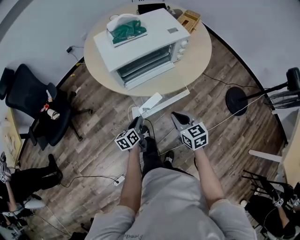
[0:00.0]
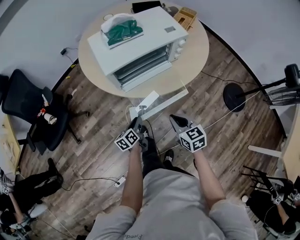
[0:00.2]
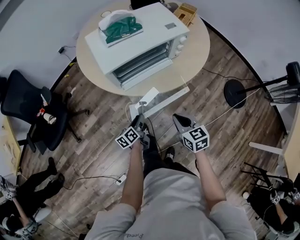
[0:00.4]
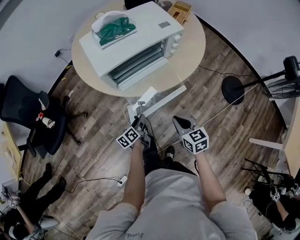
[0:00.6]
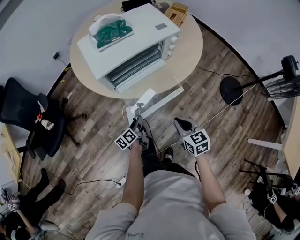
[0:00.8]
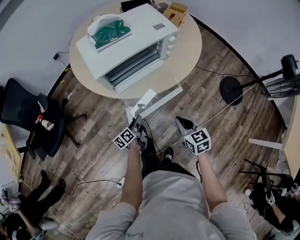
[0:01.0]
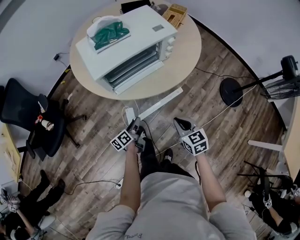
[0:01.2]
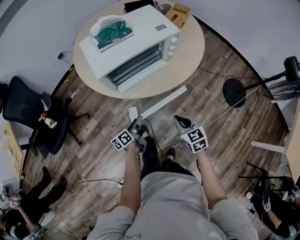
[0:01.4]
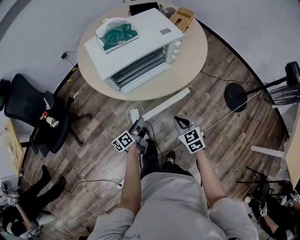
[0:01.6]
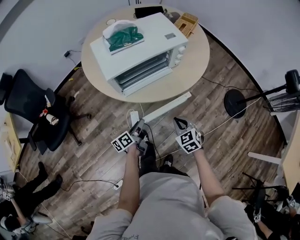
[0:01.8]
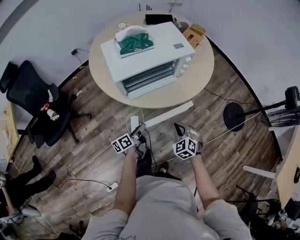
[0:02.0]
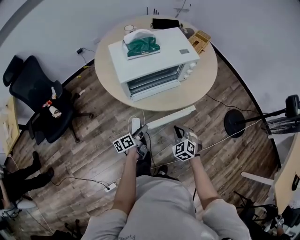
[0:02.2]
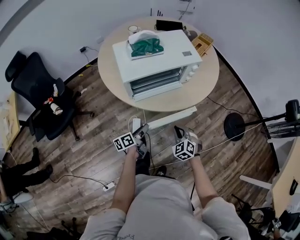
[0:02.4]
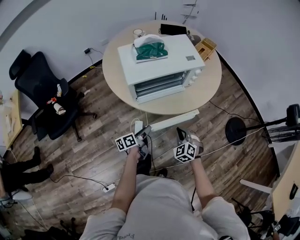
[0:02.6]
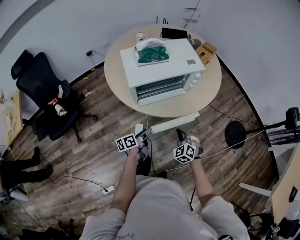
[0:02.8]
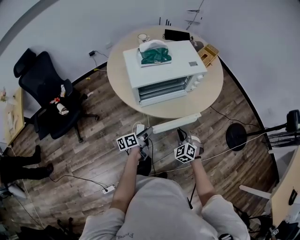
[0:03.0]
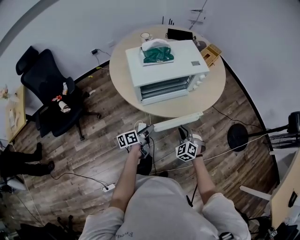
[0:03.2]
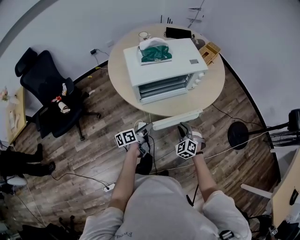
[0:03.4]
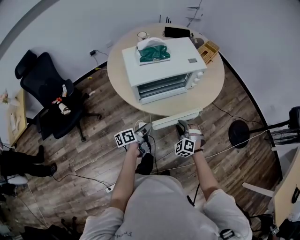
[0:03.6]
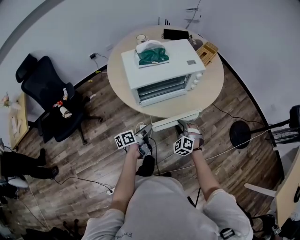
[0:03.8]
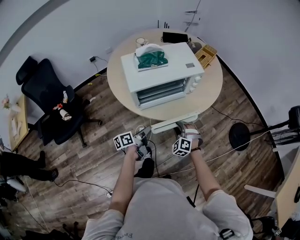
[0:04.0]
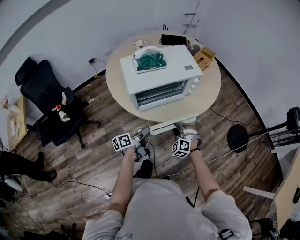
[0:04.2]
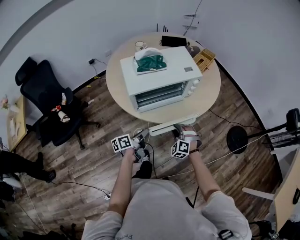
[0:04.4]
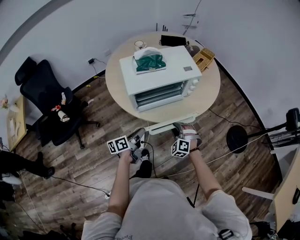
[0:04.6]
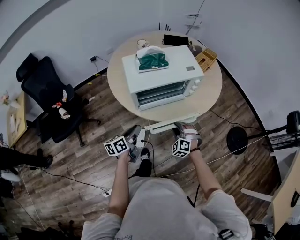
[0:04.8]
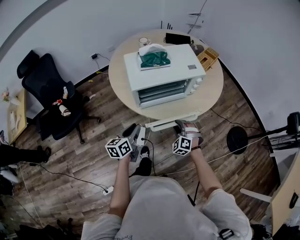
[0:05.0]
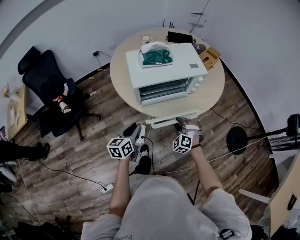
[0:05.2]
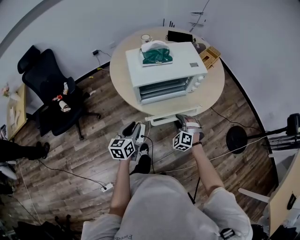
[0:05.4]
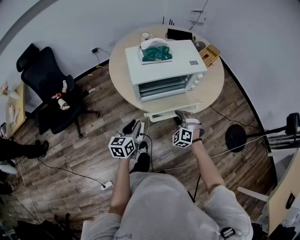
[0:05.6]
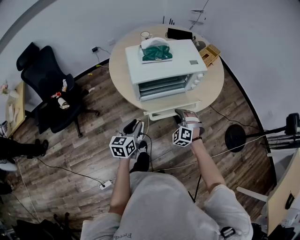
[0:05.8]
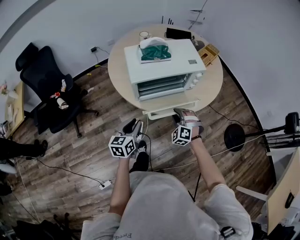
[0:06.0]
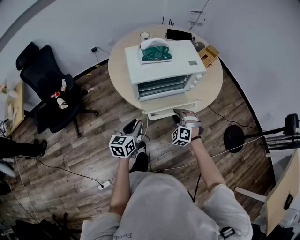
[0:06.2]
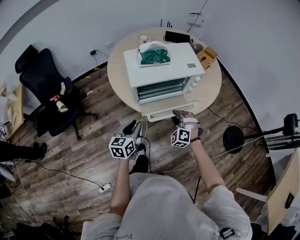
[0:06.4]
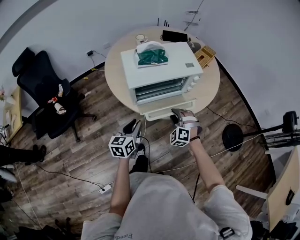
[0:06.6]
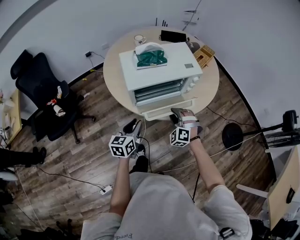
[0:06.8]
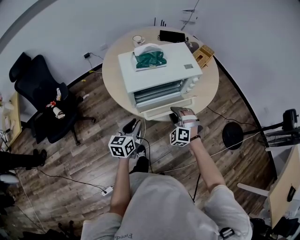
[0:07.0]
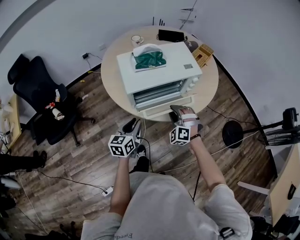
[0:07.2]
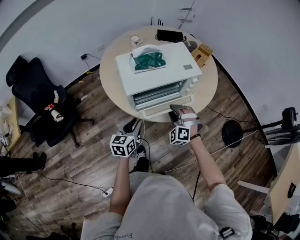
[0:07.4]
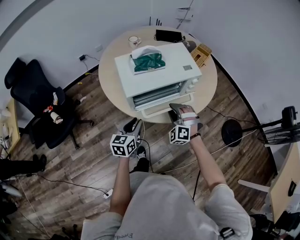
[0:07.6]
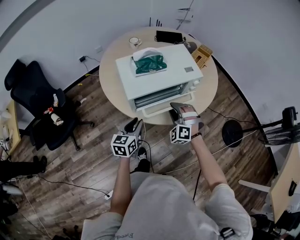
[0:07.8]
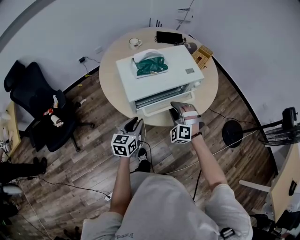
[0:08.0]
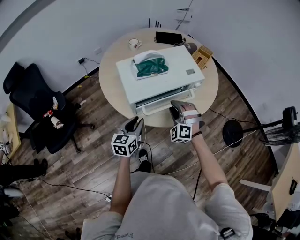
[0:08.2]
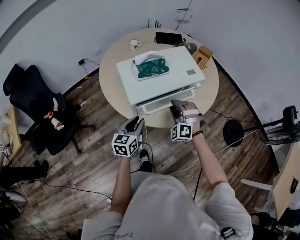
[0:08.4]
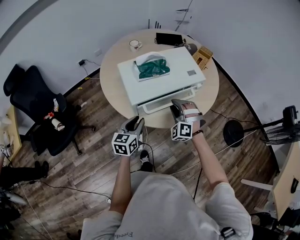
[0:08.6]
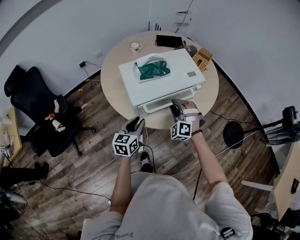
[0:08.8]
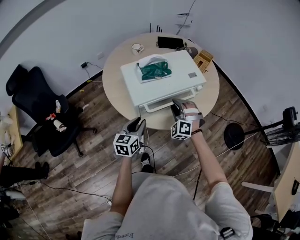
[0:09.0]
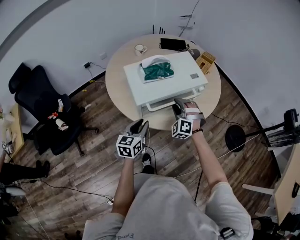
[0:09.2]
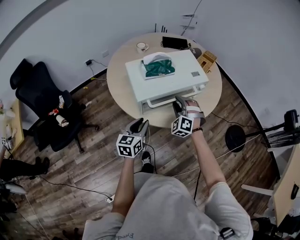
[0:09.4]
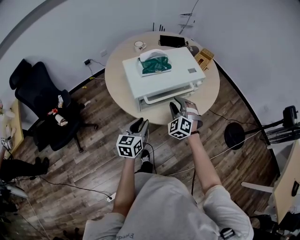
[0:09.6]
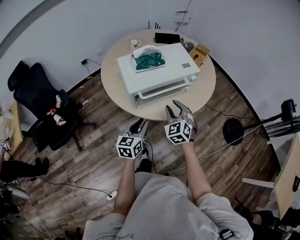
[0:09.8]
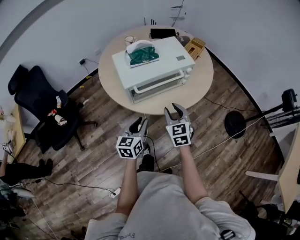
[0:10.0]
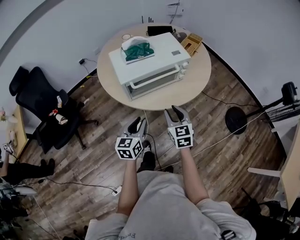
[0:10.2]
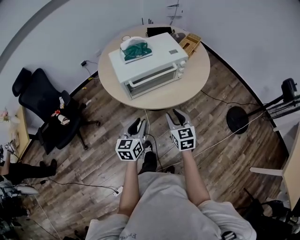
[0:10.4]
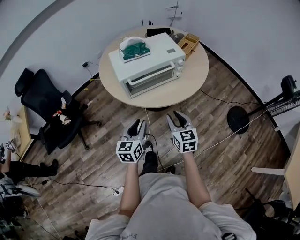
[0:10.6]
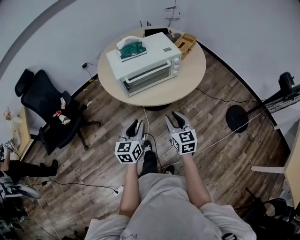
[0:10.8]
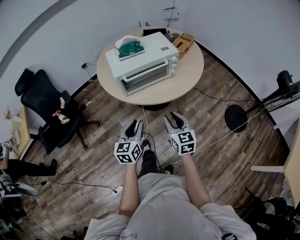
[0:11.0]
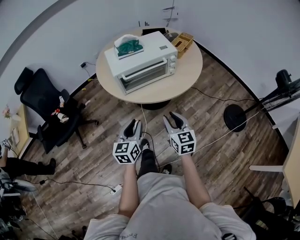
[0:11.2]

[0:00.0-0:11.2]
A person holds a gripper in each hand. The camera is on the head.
0:00.0 to 0:01.6: The right gripper goes some 5 cm downward, while the left gripper swivels about 20 degrees.
0:01.6 to 0:03.2: The left gripper moves upward, approximately 5 cm, while the right gripper ends up roughly 5 cm from where it was, and rotates around the line of its fingers by some 40 degrees, counterclockwise from behind.
0:03.2 to 0:04.8: The left gripper heads upward and to the left, covering some 10 cm.
0:04.8 to 0:06.4: The right gripper moves roughly 5 cm; the left gripper turns by some 30 degrees.
0:06.4 to 0:08.0: The left gripper heads forward, covering roughly 10 cm; the right gripper goes about 10 cm forward and upward.
0:08.0 to 0:09.6: The grippers make only small movements.
0:09.6 to 0:11.2: Both grippers travel together backward and to the right, roughly 25 cm. The right gripper rotates around the line of its fingers by some 60 degrees, clockwise from behind.

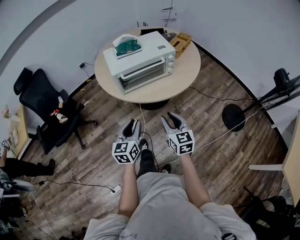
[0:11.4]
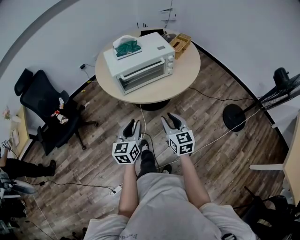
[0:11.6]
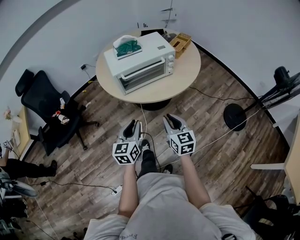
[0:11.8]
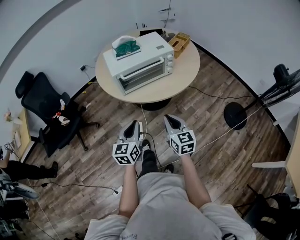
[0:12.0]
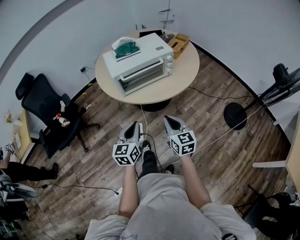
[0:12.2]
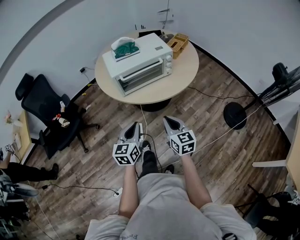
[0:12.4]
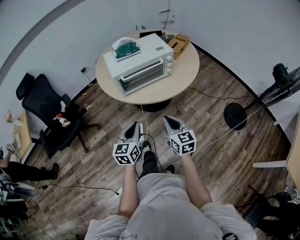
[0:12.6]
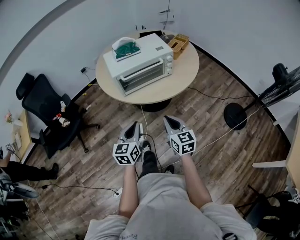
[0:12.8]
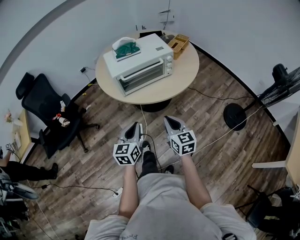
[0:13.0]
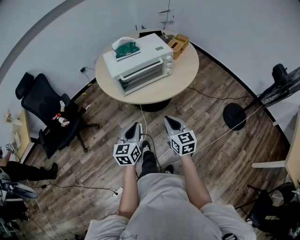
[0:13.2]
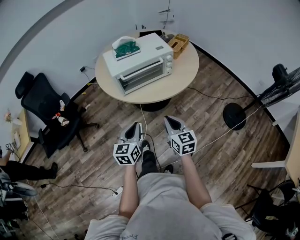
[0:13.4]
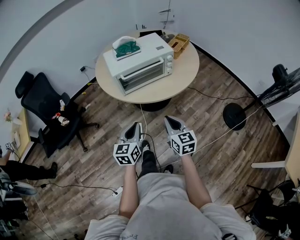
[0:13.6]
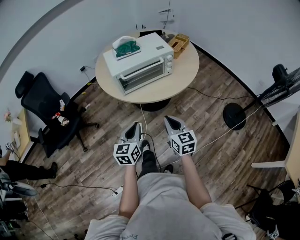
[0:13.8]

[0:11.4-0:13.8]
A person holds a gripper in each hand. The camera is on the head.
0:11.4 to 0:12.6: The left gripper closes its fingers. The right gripper closes its fingers.
0:12.6 to 0:13.8: Both grippers stay put.

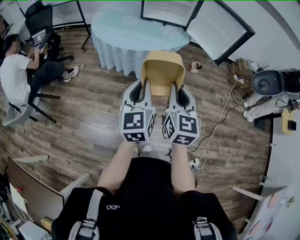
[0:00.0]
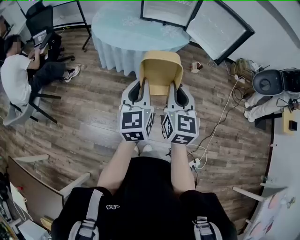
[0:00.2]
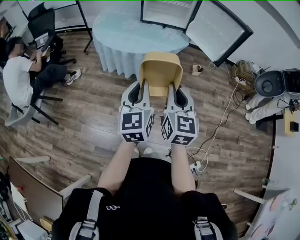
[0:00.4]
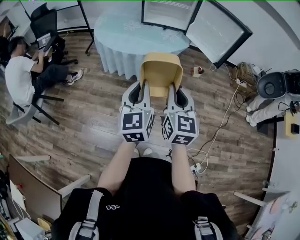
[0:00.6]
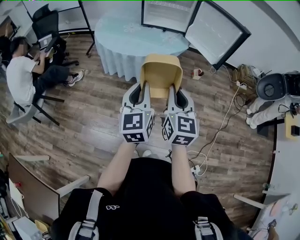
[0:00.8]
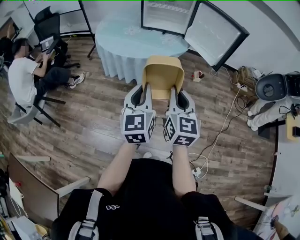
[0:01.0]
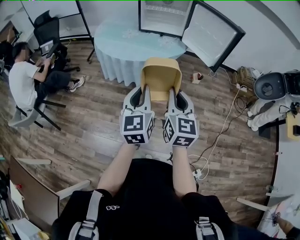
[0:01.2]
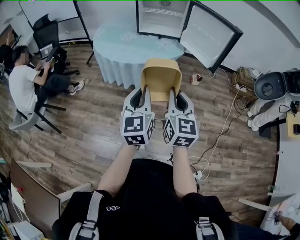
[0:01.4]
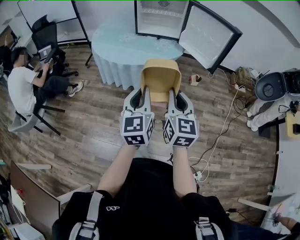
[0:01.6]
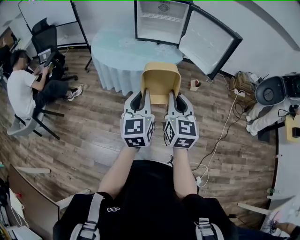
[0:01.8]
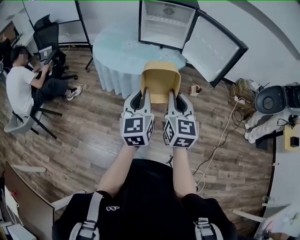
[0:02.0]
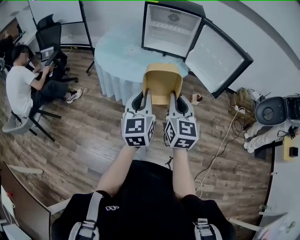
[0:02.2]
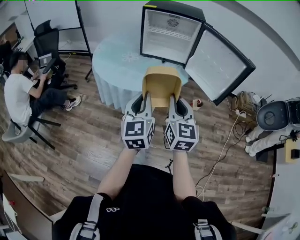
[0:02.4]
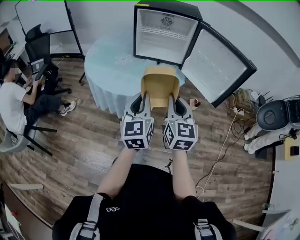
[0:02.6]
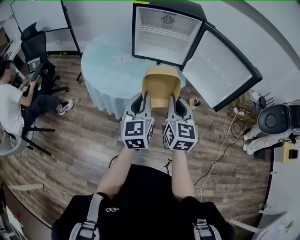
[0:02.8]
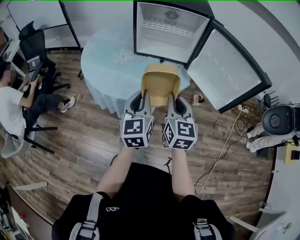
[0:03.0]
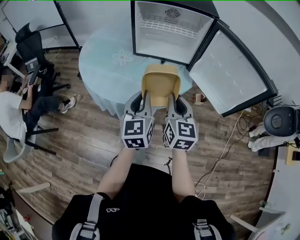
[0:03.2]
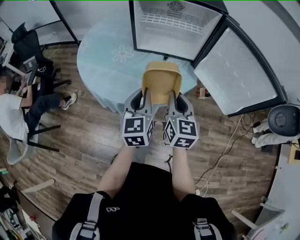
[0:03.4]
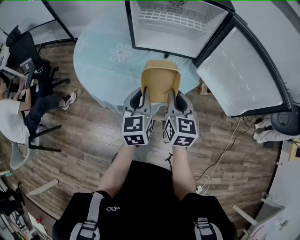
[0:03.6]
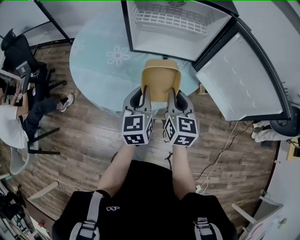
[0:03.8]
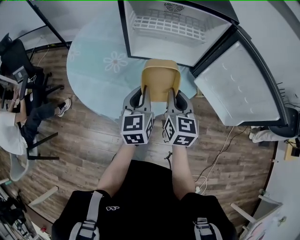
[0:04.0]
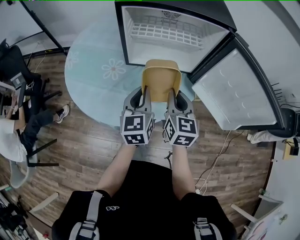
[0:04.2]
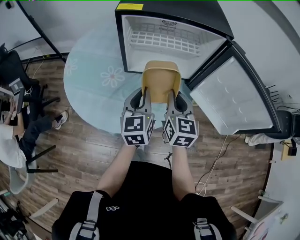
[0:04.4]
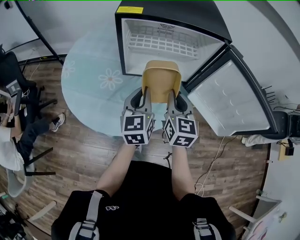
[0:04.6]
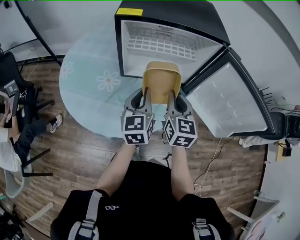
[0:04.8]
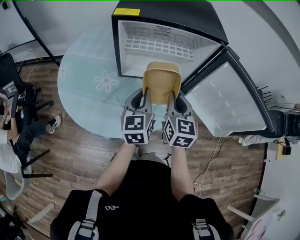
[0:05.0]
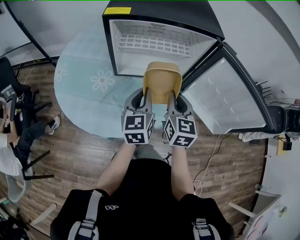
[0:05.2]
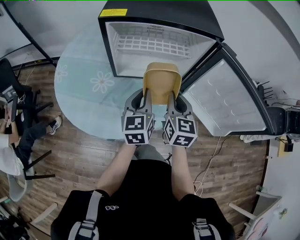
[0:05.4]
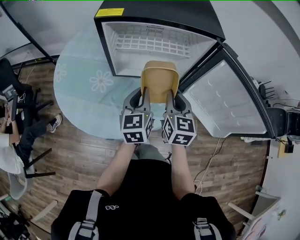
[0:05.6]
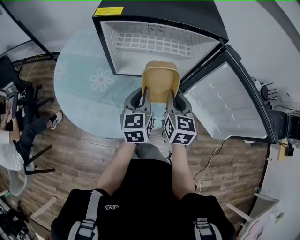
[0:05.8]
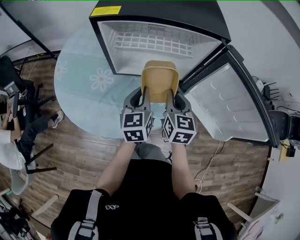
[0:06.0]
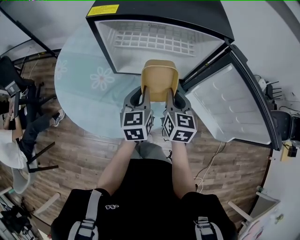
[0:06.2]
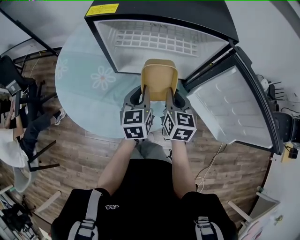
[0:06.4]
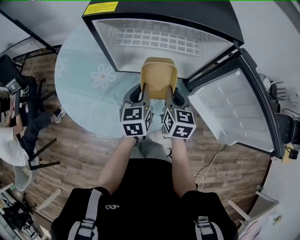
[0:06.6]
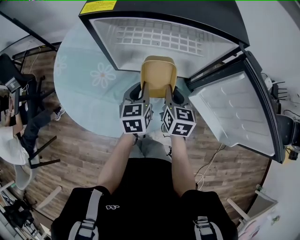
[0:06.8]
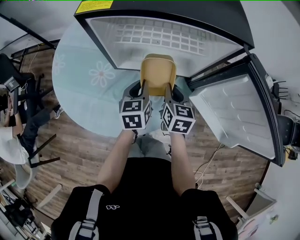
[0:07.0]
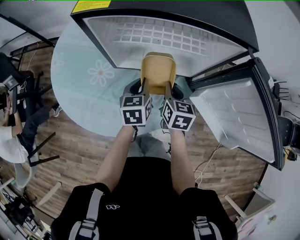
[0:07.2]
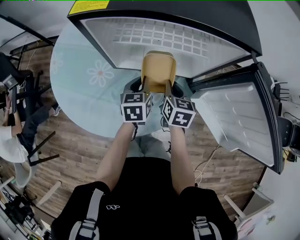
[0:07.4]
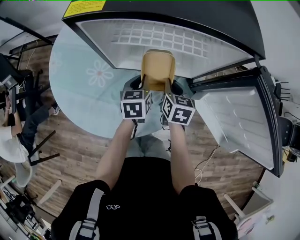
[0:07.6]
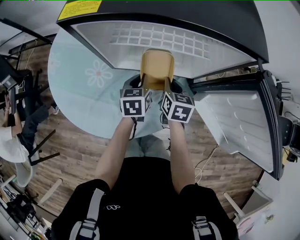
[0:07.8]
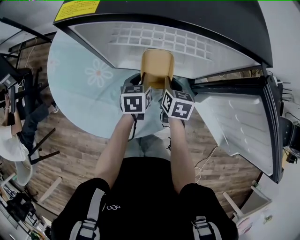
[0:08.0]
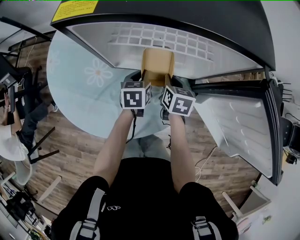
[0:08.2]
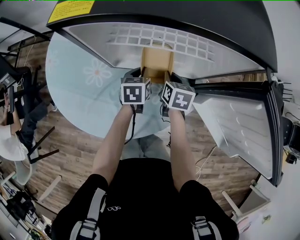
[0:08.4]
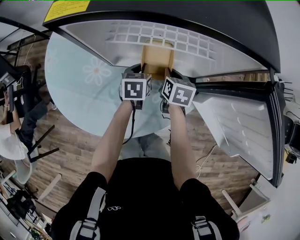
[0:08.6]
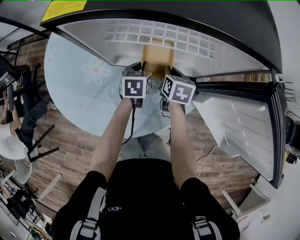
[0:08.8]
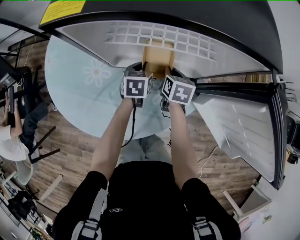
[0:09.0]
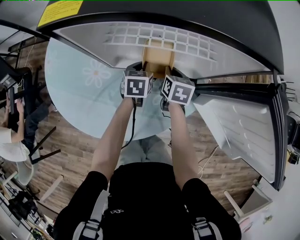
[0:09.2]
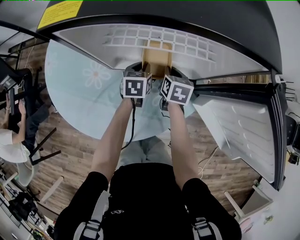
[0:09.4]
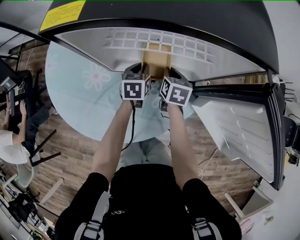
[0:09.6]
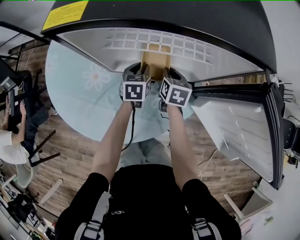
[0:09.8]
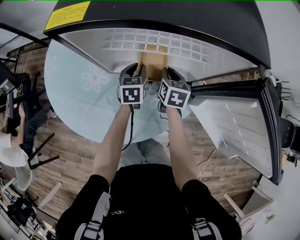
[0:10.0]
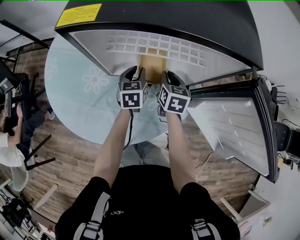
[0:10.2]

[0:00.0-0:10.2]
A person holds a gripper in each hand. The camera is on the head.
0:00.0 to 0:01.4: Both grippers move to the right, some 5 cm.
0:01.4 to 0:03.0: Both grippers travel together forward, about 35 cm.
0:03.0 to 0:04.4: The grippers both shift forward by about 25 cm.
0:04.4 to 0:05.8: The left gripper travels forward and to the right by approximately 10 cm. The right gripper travels to the right and forward by roughly 5 cm.
0:05.8 to 0:07.2: Both grippers travel together downward and forward, approximately 15 cm.
0:07.2 to 0:08.8: The grippers both shift forward and downward by roughly 10 cm.
0:08.8 to 0:10.2: The grippers make only small movements.
